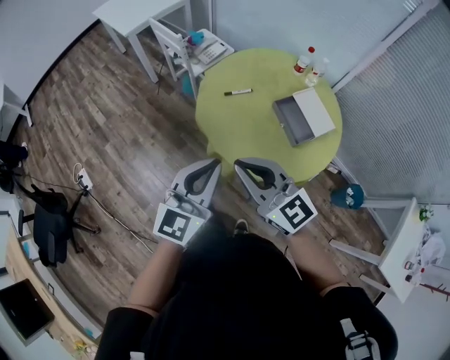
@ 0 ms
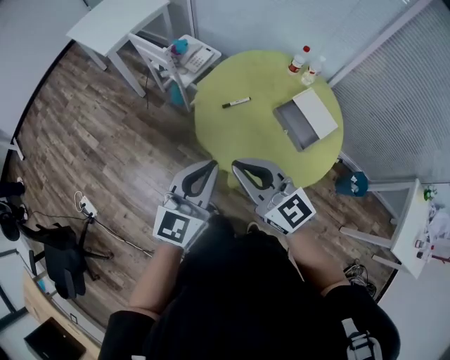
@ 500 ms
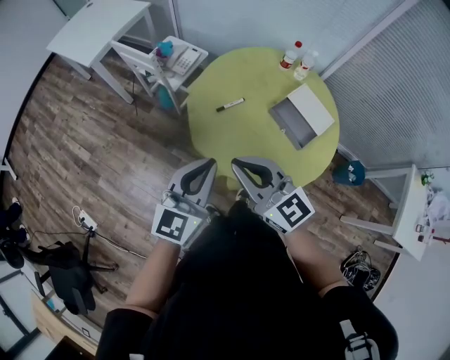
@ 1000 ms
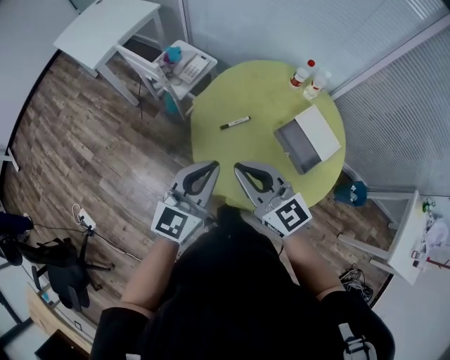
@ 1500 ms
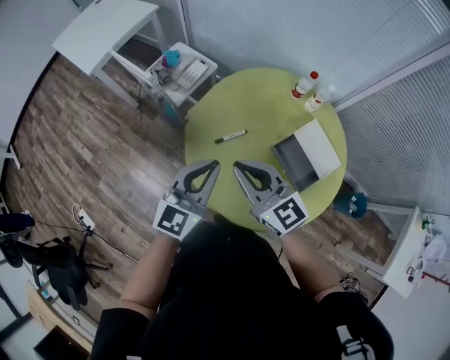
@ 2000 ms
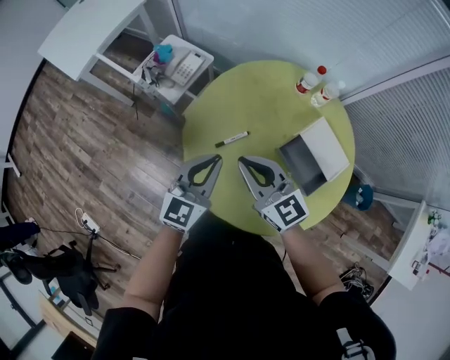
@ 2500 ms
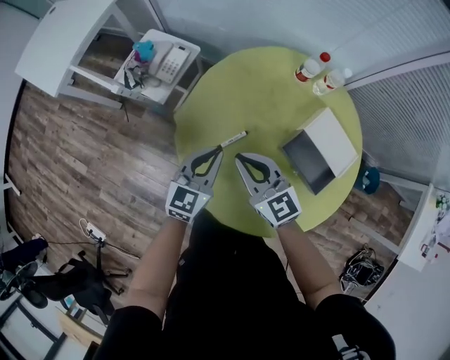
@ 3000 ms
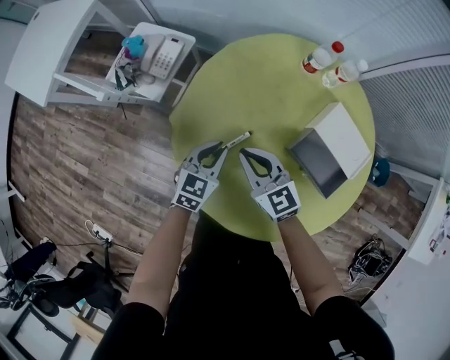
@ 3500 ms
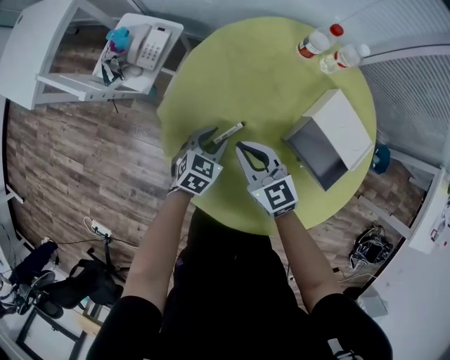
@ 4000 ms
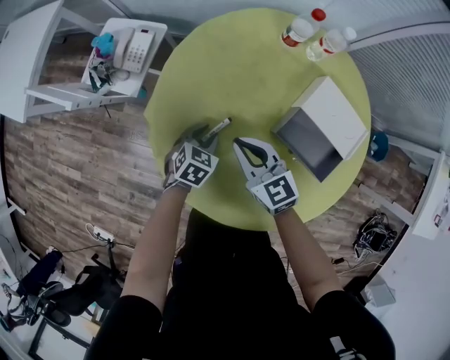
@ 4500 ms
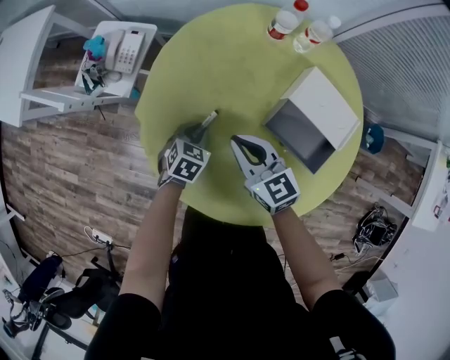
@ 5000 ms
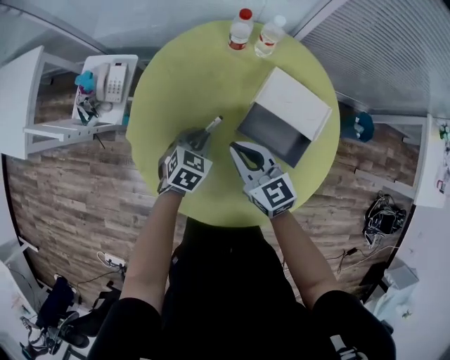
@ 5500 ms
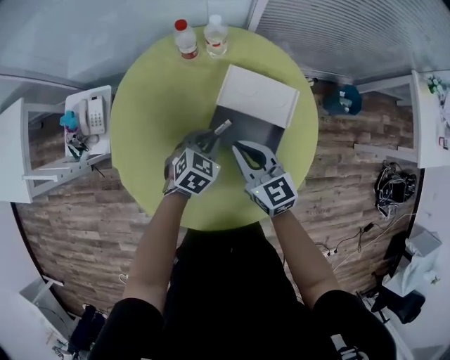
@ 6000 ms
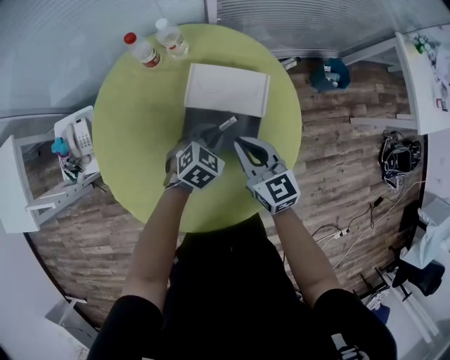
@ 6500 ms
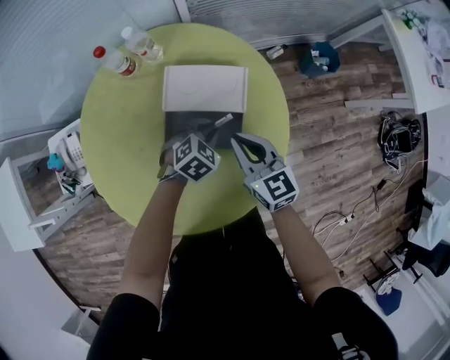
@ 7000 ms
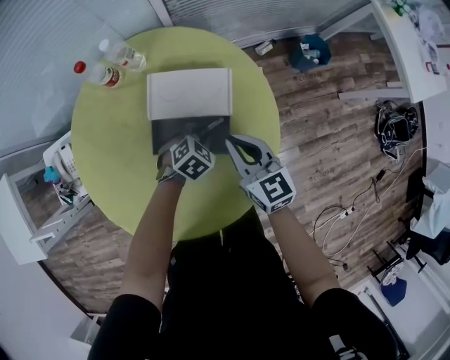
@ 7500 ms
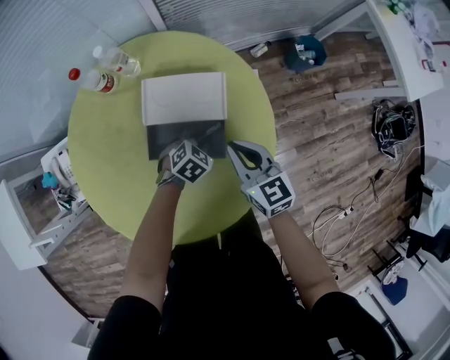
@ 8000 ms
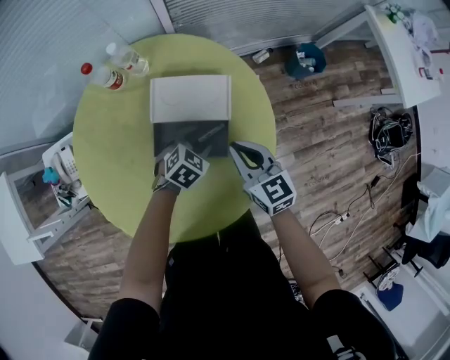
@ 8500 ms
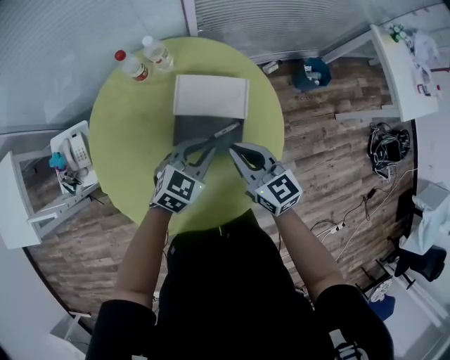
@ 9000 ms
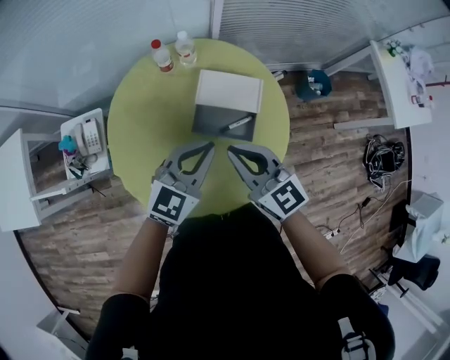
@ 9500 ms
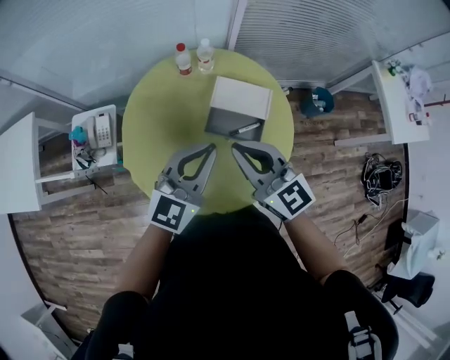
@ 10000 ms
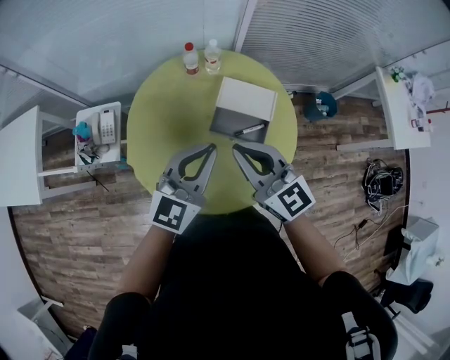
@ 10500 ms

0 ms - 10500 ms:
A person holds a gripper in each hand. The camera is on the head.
0 ms - 2000 ms: Both grippers move forward, roughly 30 cm.
2000 ms - 4000 ms: The two grippers go roughly 35 cm downward and forward. The left gripper angles its fingers downward, by roughly 40 degrees, and opens up. Meanwhile the right gripper swivels some 20 degrees.
4000 ms - 6500 ms: The right gripper ends up some 30 cm from where it was, and rotates some 40 degrees, while the left gripper moves some 30 cm, and changes its angle by roughly 40 degrees.
6500 ms - 8500 ms: The two grippers go approximately 5 cm to the right. The left gripper opens.
8500 ms - 10500 ms: The grippers both shift upward and to the left by approximately 40 cm. The left gripper tilts its fingers about 50 degrees upward, and closes, while the right gripper changes its angle by roughly 30 degrees.

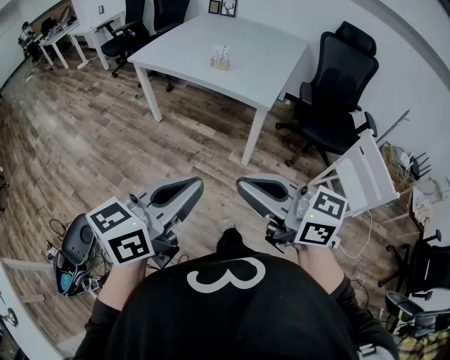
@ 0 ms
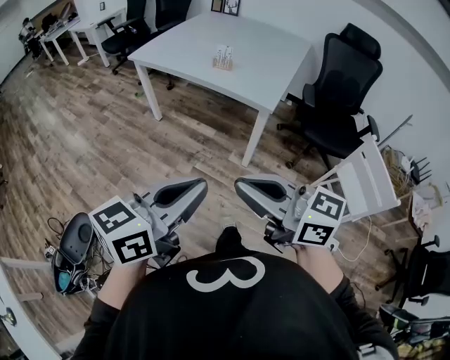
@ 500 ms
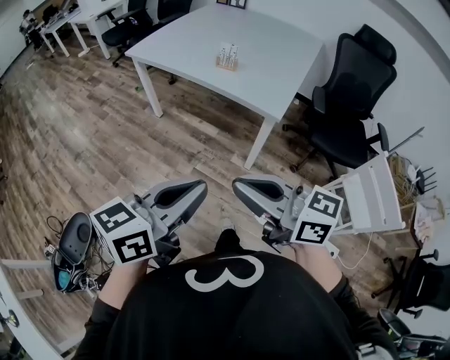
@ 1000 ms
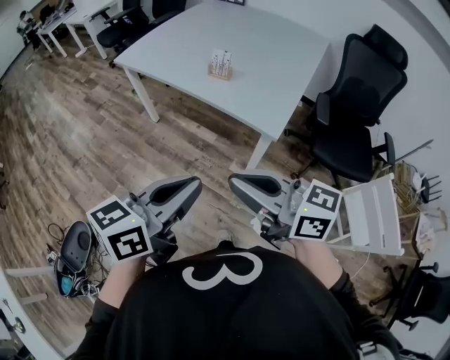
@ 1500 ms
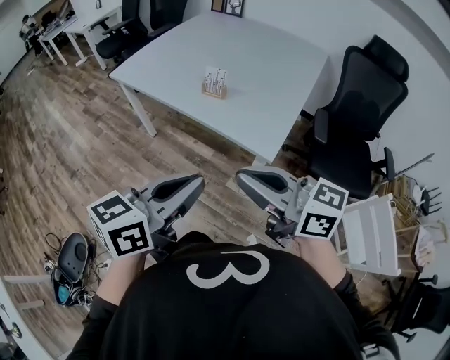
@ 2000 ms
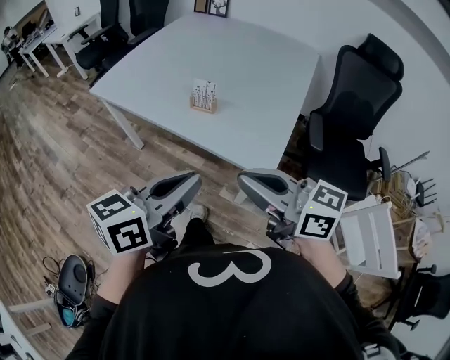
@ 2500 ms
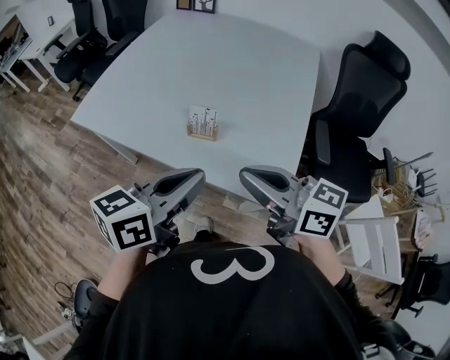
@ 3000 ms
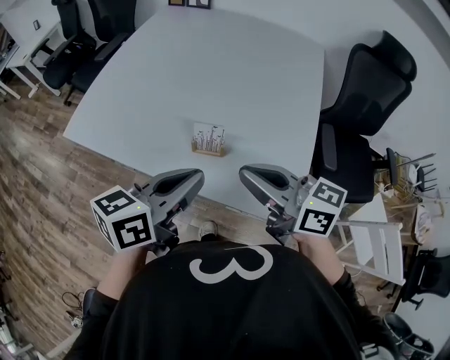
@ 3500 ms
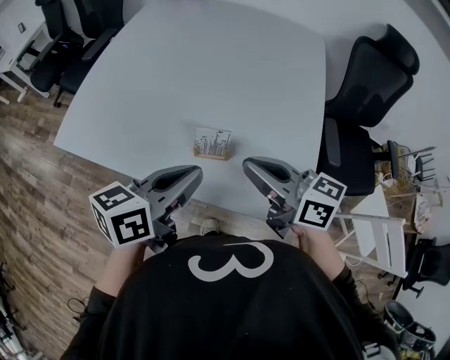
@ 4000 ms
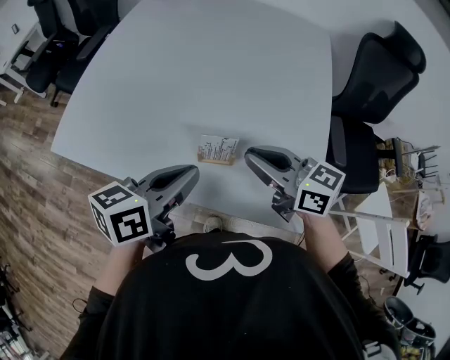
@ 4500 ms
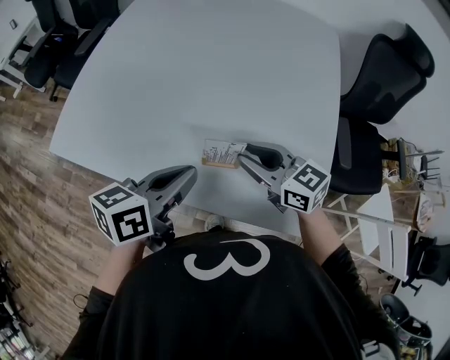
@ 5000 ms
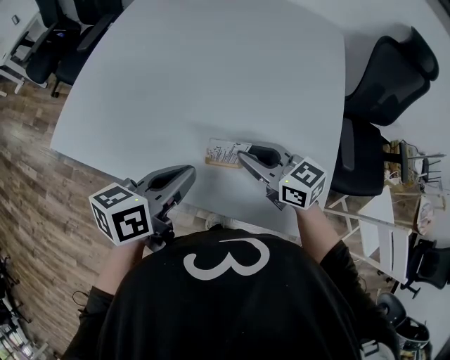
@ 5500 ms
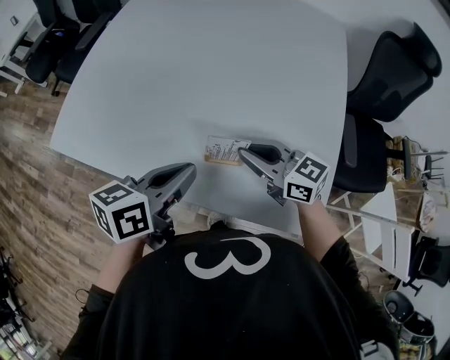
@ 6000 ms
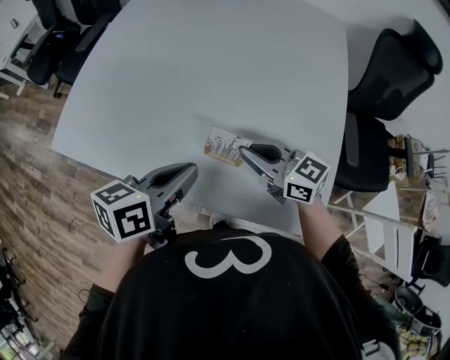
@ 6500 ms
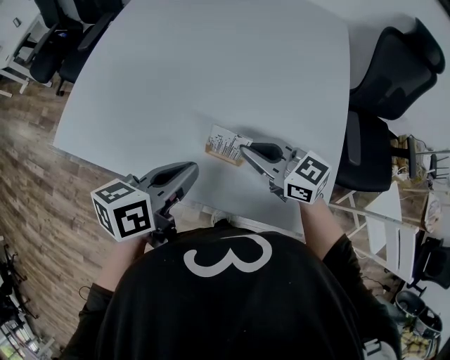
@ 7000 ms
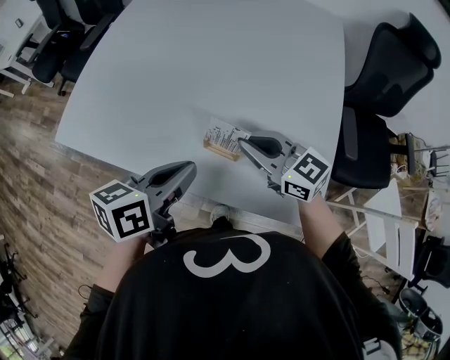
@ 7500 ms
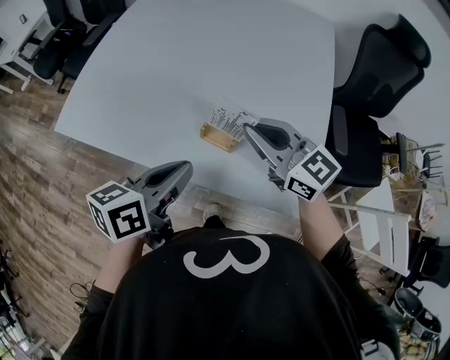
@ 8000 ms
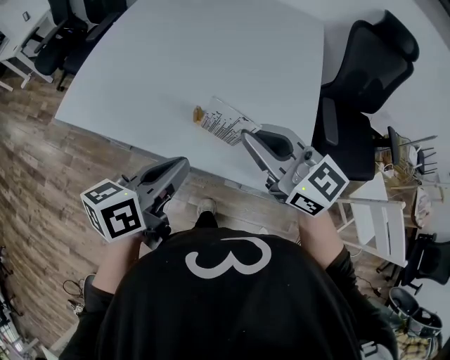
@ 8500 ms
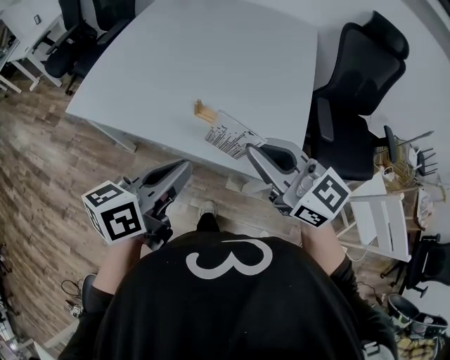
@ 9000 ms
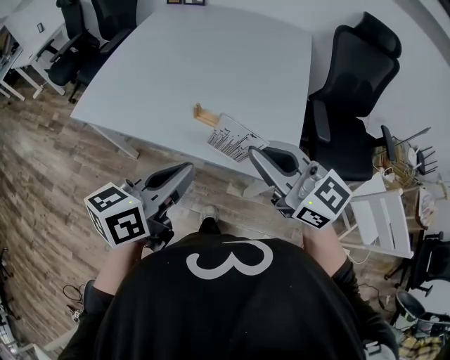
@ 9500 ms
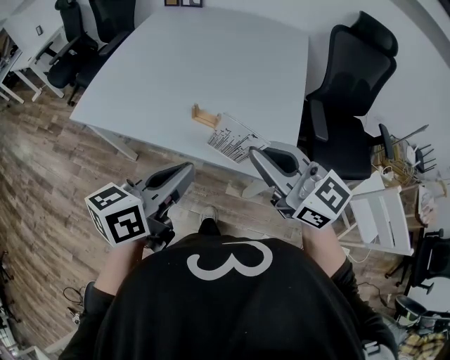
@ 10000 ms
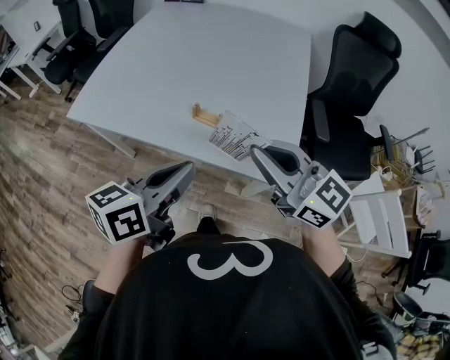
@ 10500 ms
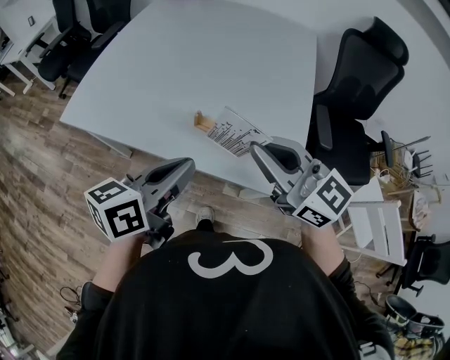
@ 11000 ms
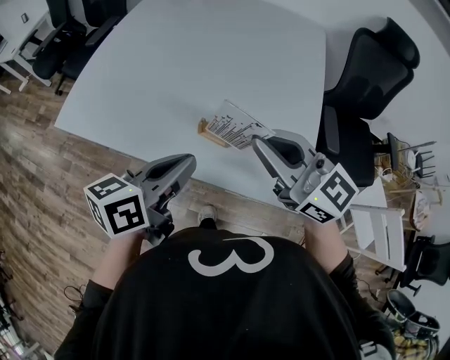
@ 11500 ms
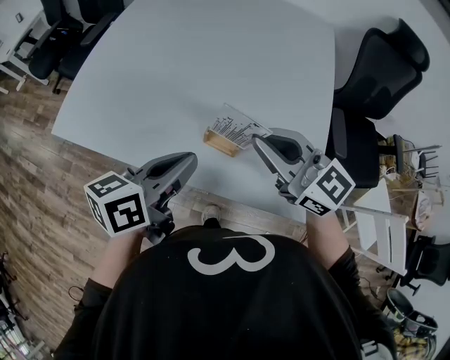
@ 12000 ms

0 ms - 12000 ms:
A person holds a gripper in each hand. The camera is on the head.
0 ms - 2000 ms: Both grippers travel together forward, about 30 cm.
2000 ms - 4000 ms: Both grippers move forward, about 35 cm. The left gripper turns by about 20 degrees. Meanwhile the right gripper turns by about 30 degrees.
4000 ms - 6000 ms: The right gripper travels downward and forward by approximately 15 cm. The left gripper moves downward and forward, roughly 10 cm.
6000 ms - 8000 ms: The left gripper goes approximately 5 cm backward; the right gripper moves upward, approximately 10 cm.
8000 ms - 10000 ms: The grippers both shift backward and upward by some 20 cm.
10000 ms - 12000 ms: The two grippers go roughly 20 cm forward.

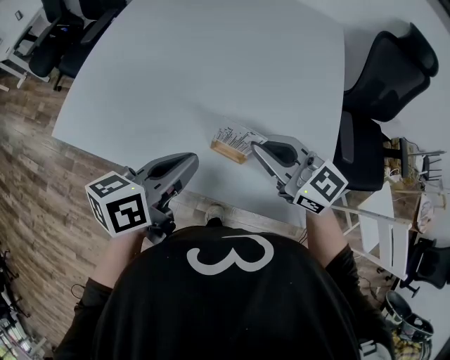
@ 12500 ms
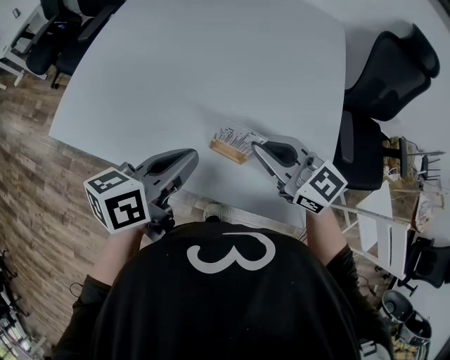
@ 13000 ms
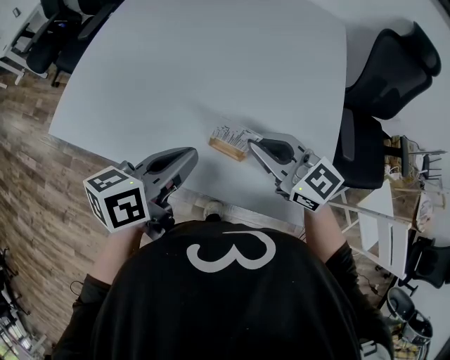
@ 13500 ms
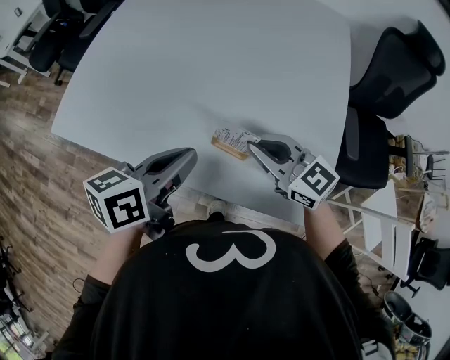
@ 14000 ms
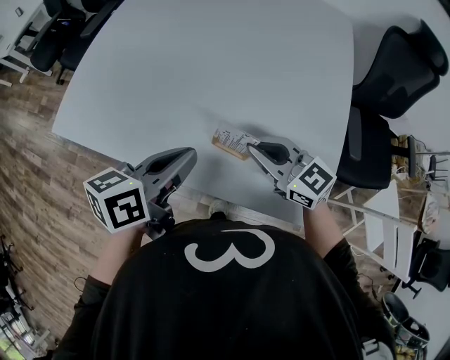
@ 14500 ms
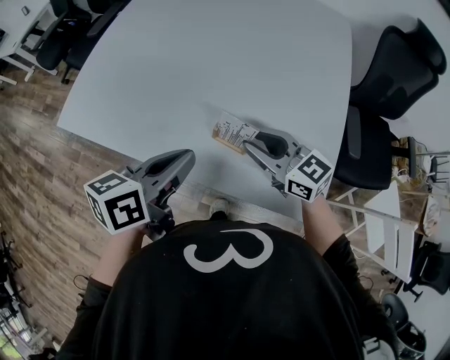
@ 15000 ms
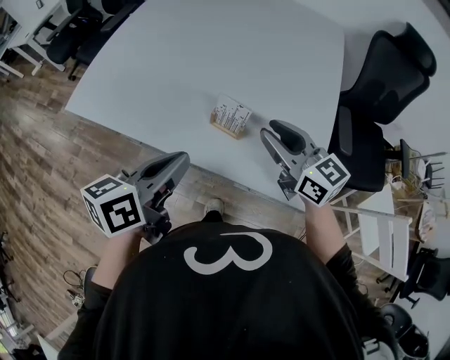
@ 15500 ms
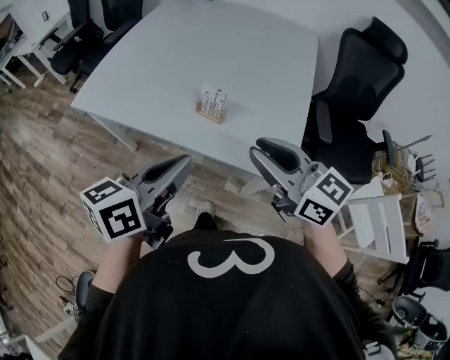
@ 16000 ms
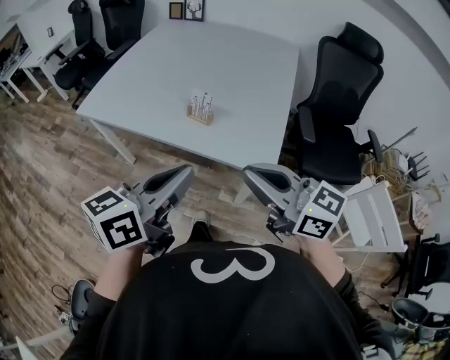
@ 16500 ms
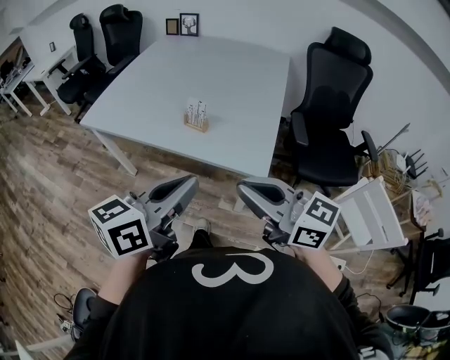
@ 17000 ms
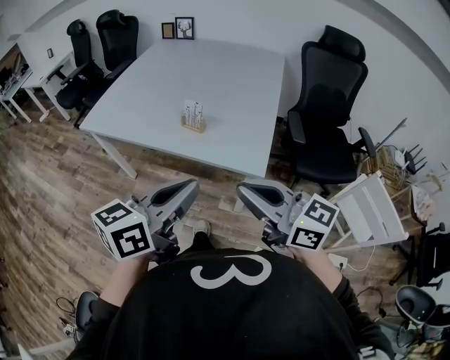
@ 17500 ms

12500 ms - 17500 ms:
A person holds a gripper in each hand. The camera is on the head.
12500 ms - 15000 ms: The right gripper is displaced downward by some 5 cm, and opens.
15000 ms - 17500 ms: The grippers both shift backward and upward by about 40 cm. The left gripper turns by approximately 20 degrees, while the right gripper closes its fingers.
